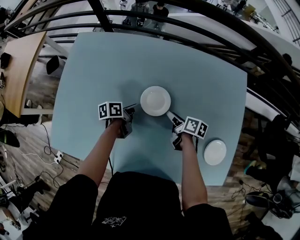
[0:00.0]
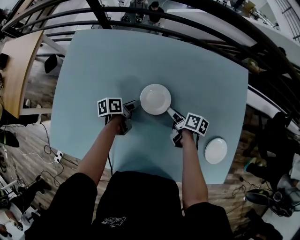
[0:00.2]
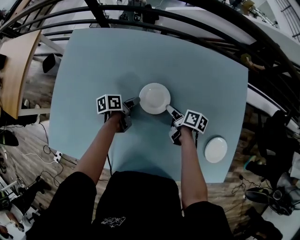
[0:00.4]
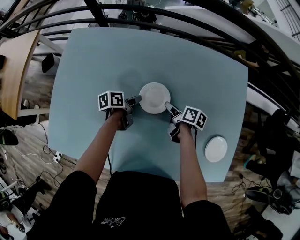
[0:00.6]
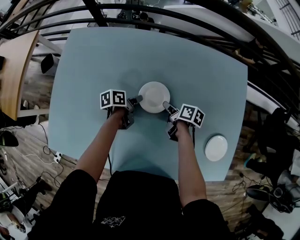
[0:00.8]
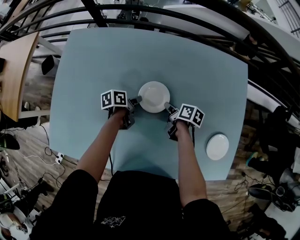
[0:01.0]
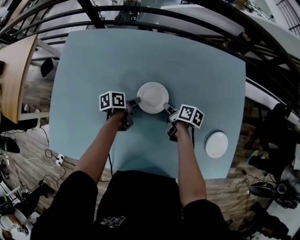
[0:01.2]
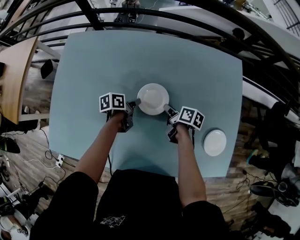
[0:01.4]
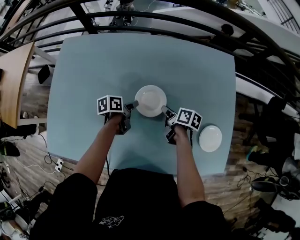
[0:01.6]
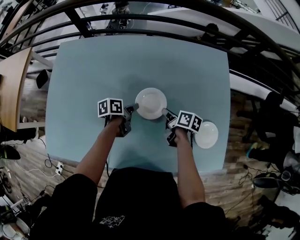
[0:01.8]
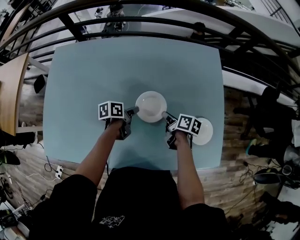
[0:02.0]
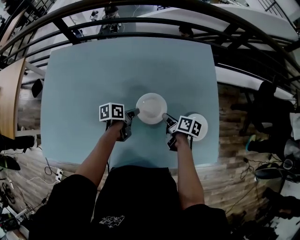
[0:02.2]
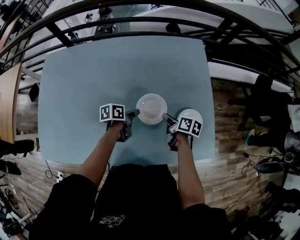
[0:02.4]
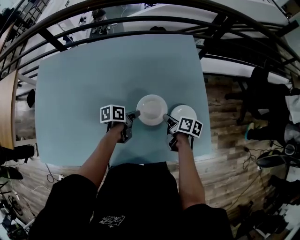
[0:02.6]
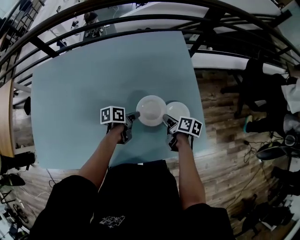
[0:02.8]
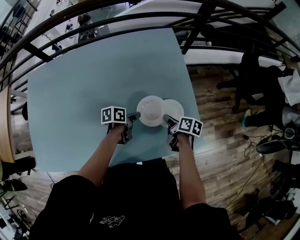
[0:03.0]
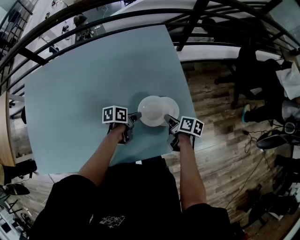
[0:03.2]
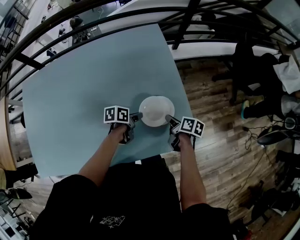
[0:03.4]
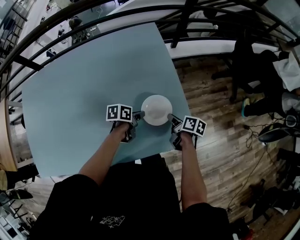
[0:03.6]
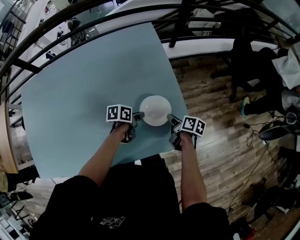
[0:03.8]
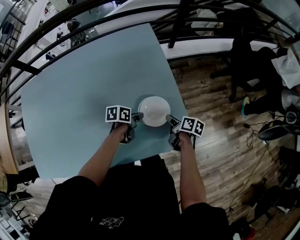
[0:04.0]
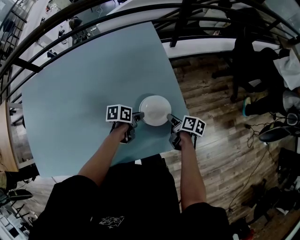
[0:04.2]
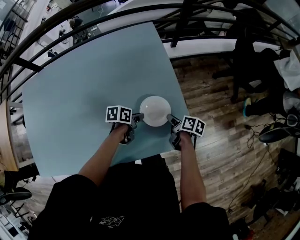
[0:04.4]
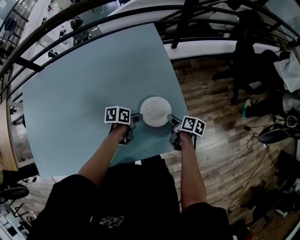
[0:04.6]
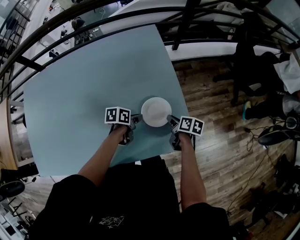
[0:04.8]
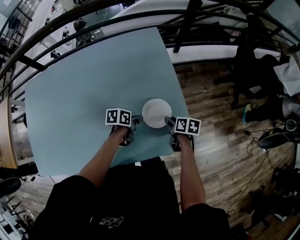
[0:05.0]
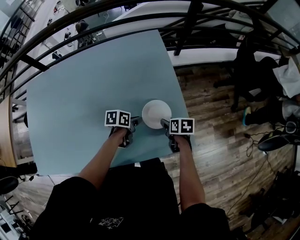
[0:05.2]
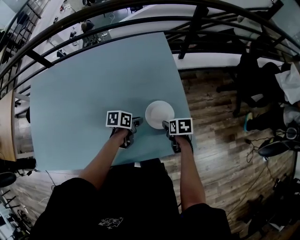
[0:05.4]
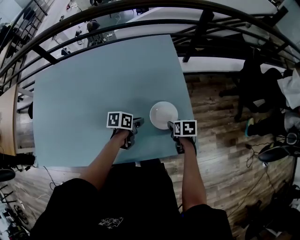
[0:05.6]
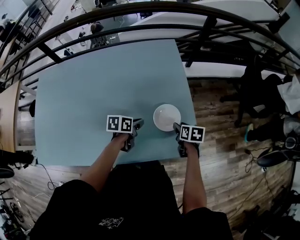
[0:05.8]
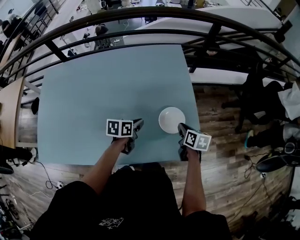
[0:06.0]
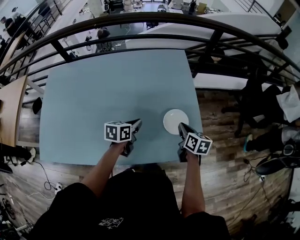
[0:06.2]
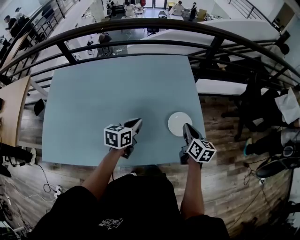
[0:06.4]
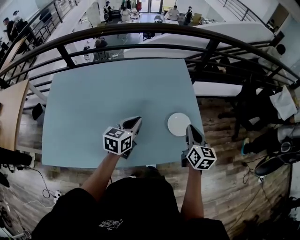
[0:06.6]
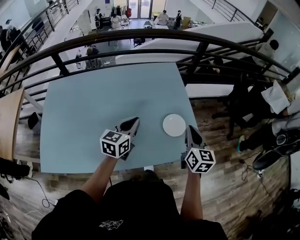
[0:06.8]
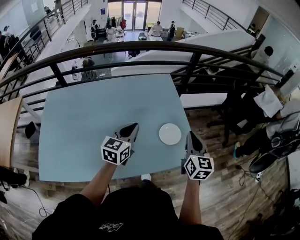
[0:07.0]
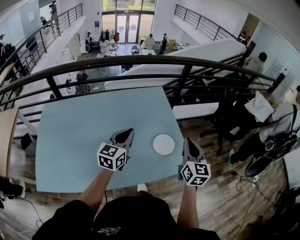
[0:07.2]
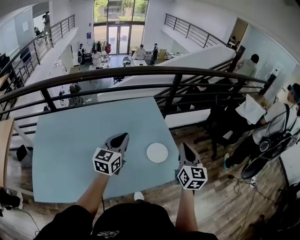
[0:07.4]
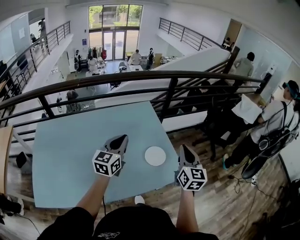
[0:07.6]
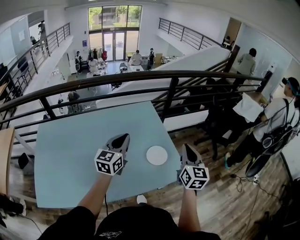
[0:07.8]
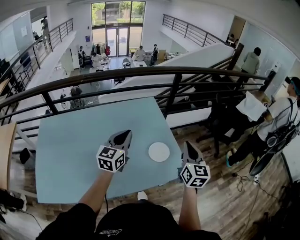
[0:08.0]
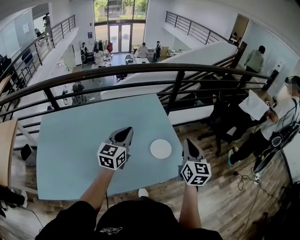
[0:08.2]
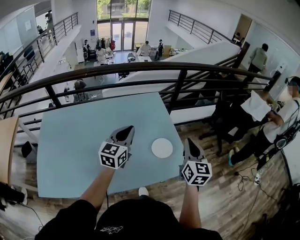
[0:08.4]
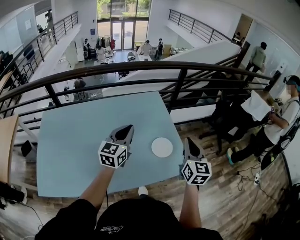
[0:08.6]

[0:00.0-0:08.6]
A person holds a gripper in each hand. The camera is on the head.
0.0 to 1.4 s: The right gripper closes.
1.4 to 2.8 s: The two grippers go about 30 cm to the right.
2.8 to 4.4 s: The two grippers go about 15 cm to the right.
4.4 to 5.8 s: The right gripper rotates roughly 40 degrees, and opens its fingers; the left gripper heads to the left and upward, covering some 10 cm.
5.8 to 7.2 s: The two grippers go about 30 cm upward. The right gripper angles its fingers upward, by some 50 degrees, and closes up, while the left gripper angles its fingers upward, by about 30 degrees.
7.2 to 8.6 s: The grippers stay close to where they were, moving slightly.

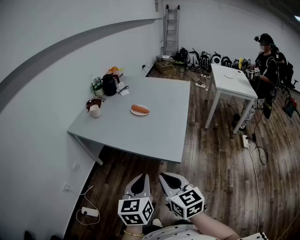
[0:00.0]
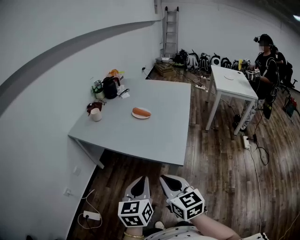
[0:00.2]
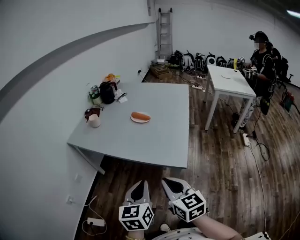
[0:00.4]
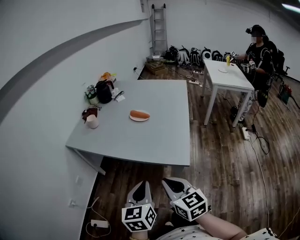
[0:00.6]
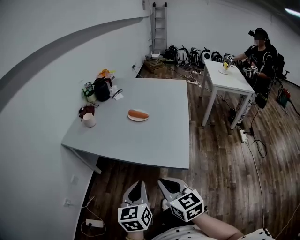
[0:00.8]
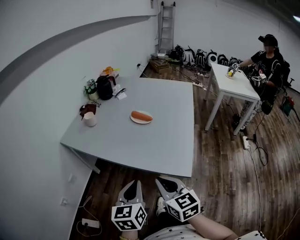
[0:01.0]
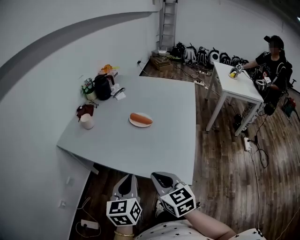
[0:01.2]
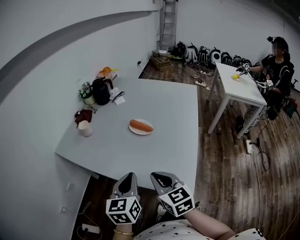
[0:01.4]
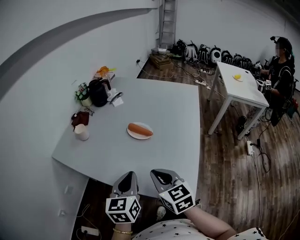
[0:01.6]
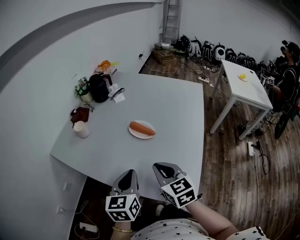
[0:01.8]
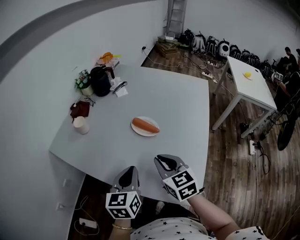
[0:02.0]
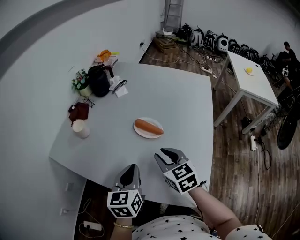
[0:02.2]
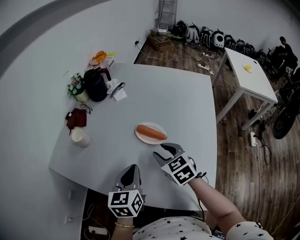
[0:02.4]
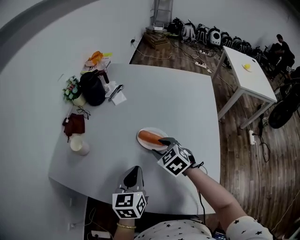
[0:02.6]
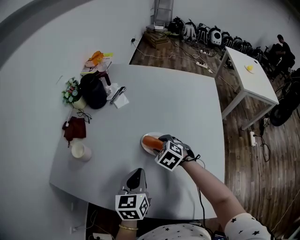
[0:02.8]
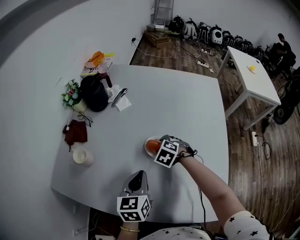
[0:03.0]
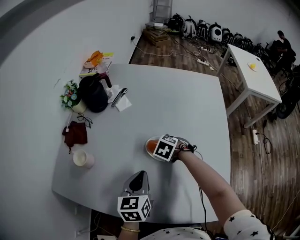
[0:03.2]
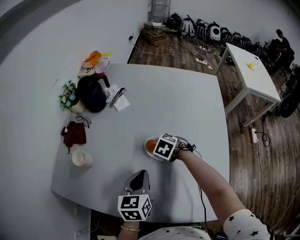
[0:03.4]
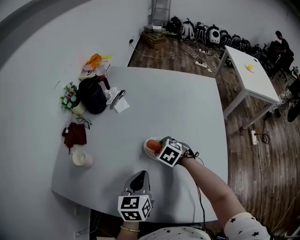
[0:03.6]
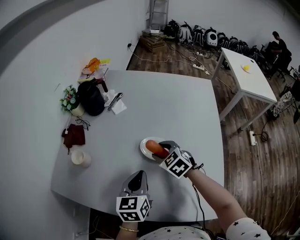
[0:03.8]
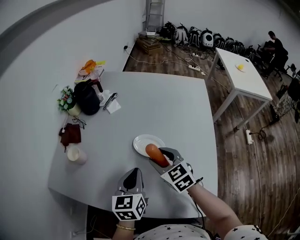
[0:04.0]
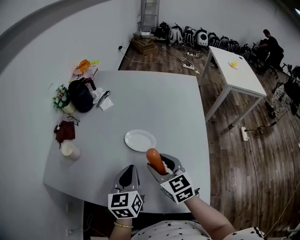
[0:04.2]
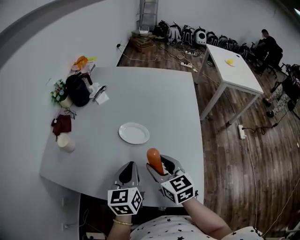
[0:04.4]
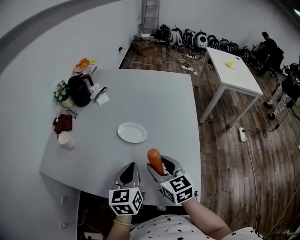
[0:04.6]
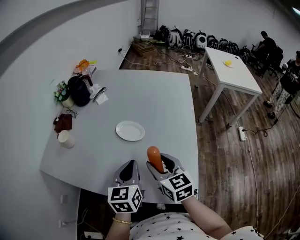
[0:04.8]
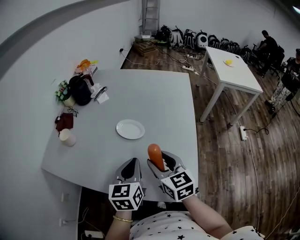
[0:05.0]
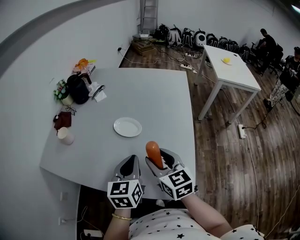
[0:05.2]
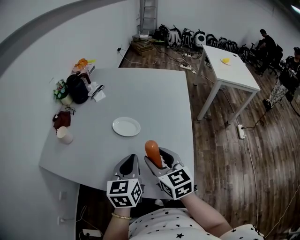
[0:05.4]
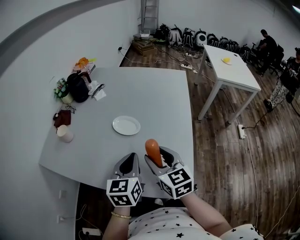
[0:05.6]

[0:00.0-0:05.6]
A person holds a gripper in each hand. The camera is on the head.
0.0 to 1.4 s: Both grippers move forward, approximately 25 cm.
1.4 to 2.8 s: The left gripper heads forward, covering about 25 cm. The right gripper moves forward and downward, roughly 40 cm, tilts its fingers approximately 40 degrees downward, and opens up.
2.8 to 4.2 s: The left gripper moves approximately 5 cm; the right gripper moves some 20 cm, and tips its fingers upward by about 30 degrees.
4.2 to 5.6 s: The right gripper goes some 10 cm backward and to the right. Meanwhile the left gripper goes roughly 10 cm to the right and backward.

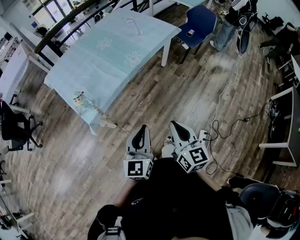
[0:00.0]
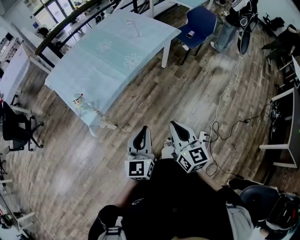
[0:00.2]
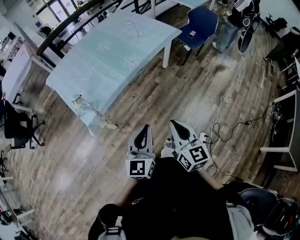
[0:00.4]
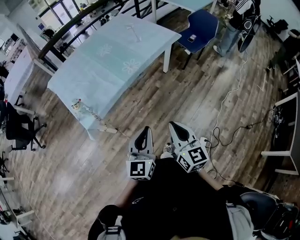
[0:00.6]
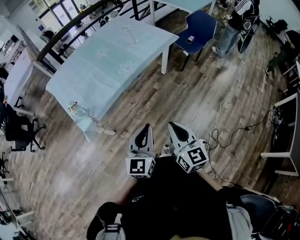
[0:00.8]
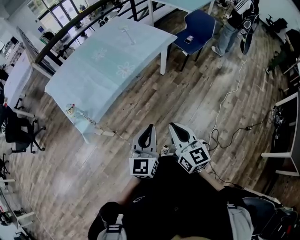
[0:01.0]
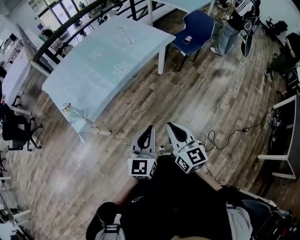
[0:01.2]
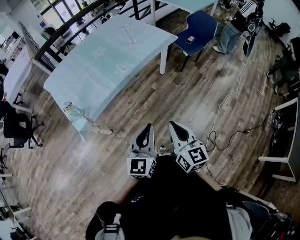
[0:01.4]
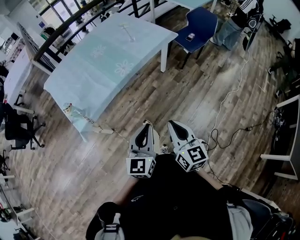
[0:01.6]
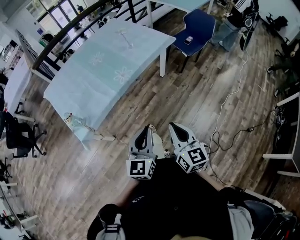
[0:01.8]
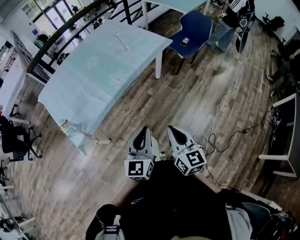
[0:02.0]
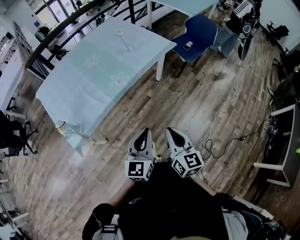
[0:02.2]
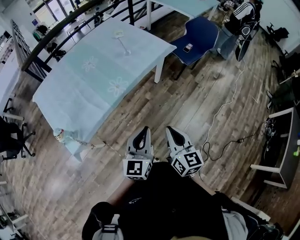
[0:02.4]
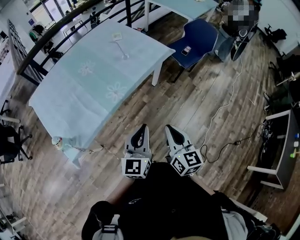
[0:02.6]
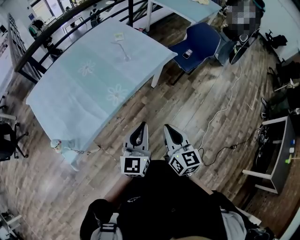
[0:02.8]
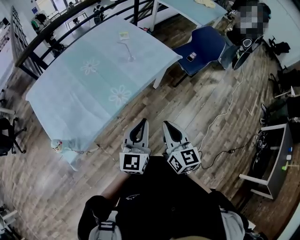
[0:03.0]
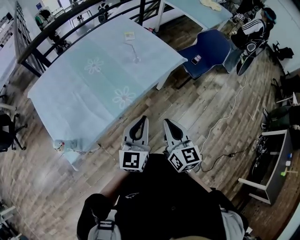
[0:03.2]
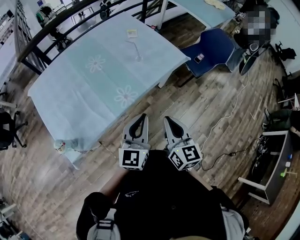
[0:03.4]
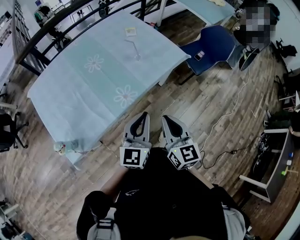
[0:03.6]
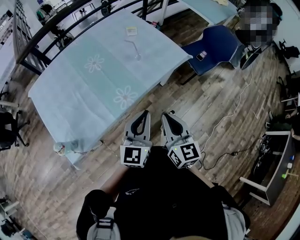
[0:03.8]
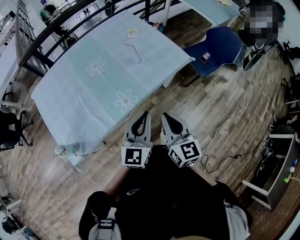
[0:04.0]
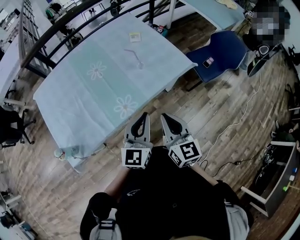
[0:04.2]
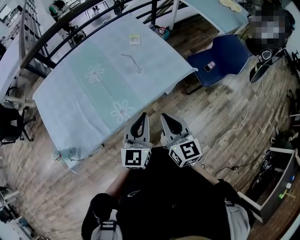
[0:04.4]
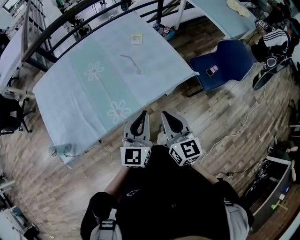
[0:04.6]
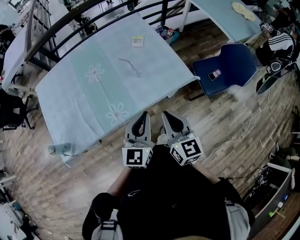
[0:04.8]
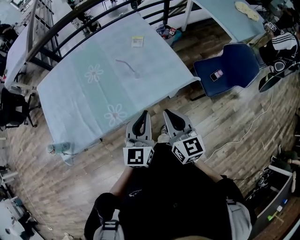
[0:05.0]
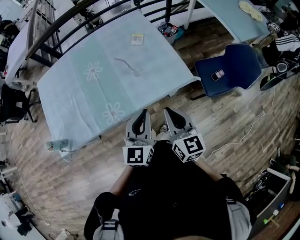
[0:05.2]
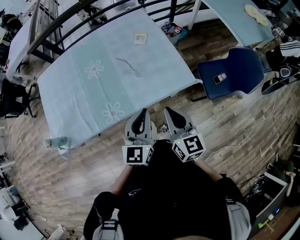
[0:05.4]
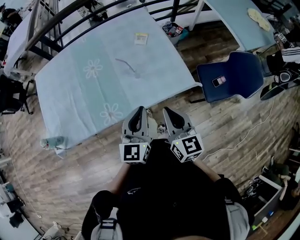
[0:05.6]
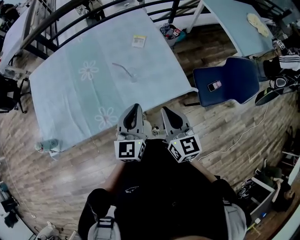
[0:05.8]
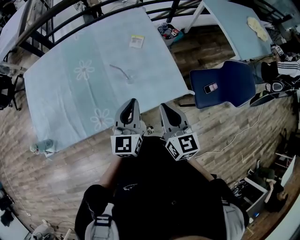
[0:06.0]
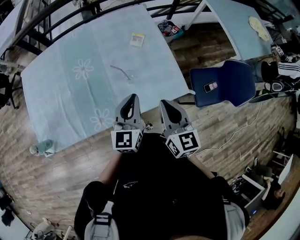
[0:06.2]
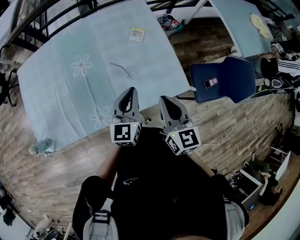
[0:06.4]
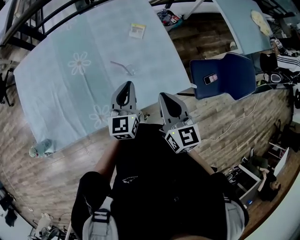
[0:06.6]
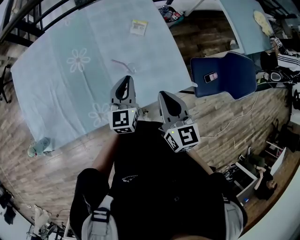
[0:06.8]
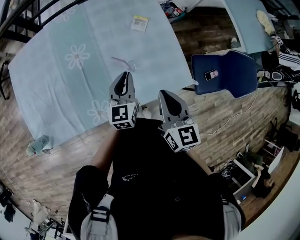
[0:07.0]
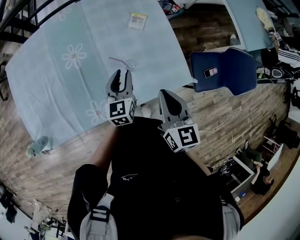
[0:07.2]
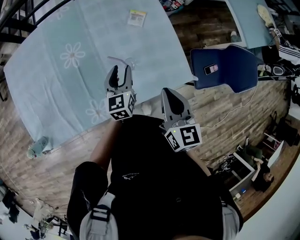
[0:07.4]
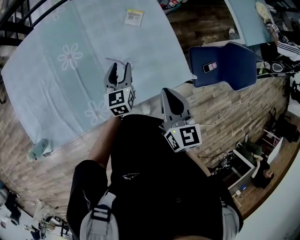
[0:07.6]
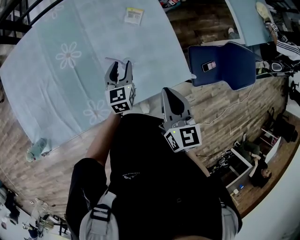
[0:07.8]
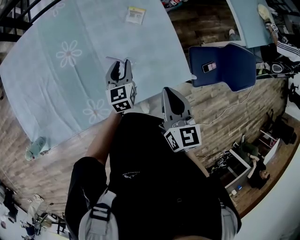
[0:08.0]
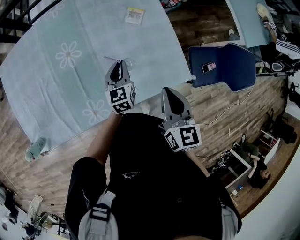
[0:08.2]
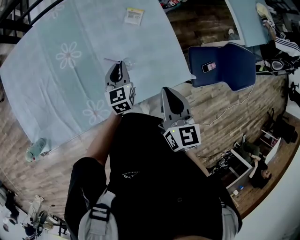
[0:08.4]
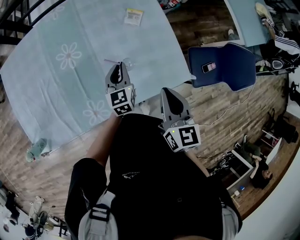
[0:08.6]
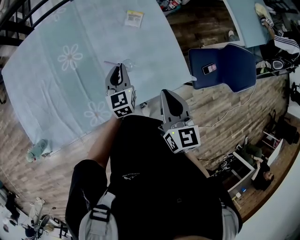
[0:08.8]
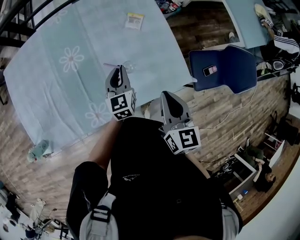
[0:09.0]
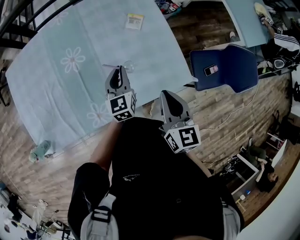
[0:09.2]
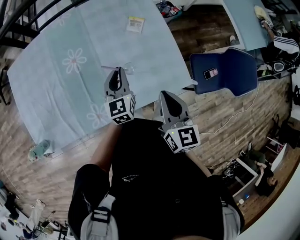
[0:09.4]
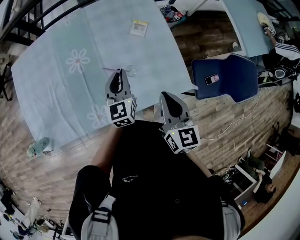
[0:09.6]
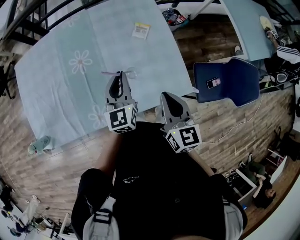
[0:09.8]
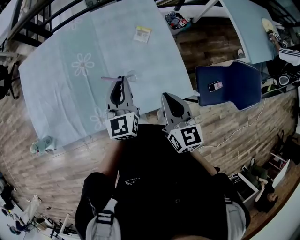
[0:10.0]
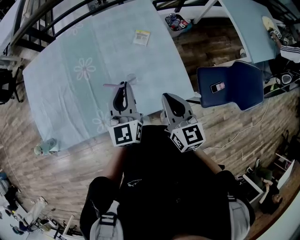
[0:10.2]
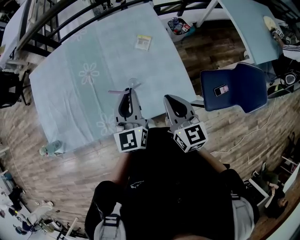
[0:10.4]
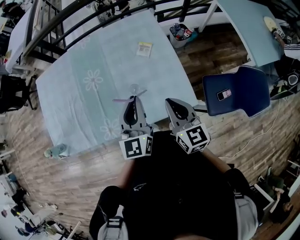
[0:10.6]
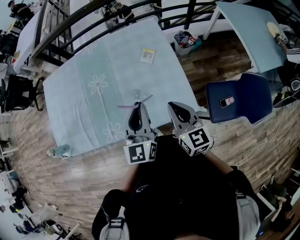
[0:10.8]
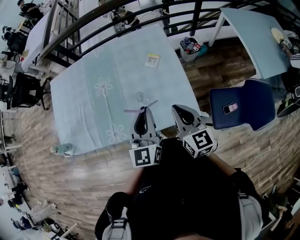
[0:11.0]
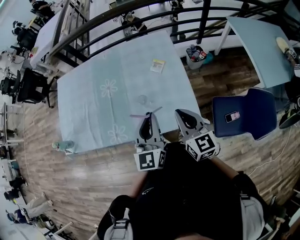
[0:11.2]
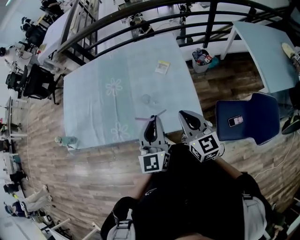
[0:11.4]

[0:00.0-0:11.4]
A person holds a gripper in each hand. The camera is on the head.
0.0 to 1.4 s: The right gripper travels to the right and forward by approximately 15 cm. The left gripper shifts about 15 cm to the right.
1.4 to 2.8 s: The two grippers go approximately 25 cm forward.
2.8 to 4.2 s: Both grippers travel together forward, roughly 15 cm.
4.2 to 5.6 s: The grippers both shift forward and to the right by approximately 20 cm.
5.6 to 7.2 s: The right gripper moves forward, about 15 cm, while the left gripper shifts some 25 cm forward and downward, and opens.
7.2 to 8.6 s: The left gripper shifts by about 5 cm.
8.6 to 10.0 s: The left gripper is displaced upward by some 15 cm.
10.0 to 11.4 s: The left gripper heads backward, to the right and upward, covering approximately 20 cm; the right gripper heads to the right, covering approximately 10 cm.
